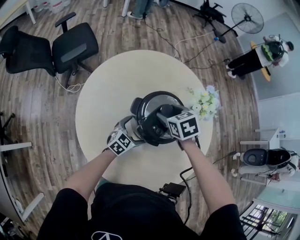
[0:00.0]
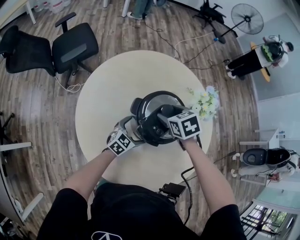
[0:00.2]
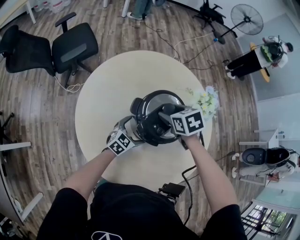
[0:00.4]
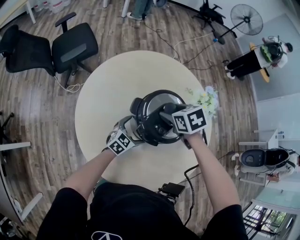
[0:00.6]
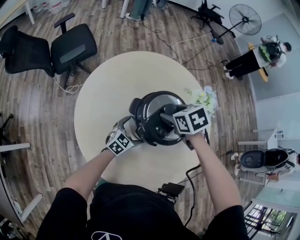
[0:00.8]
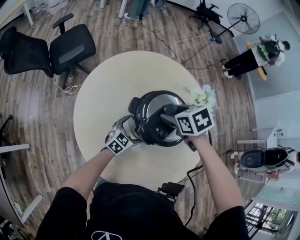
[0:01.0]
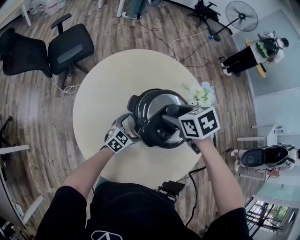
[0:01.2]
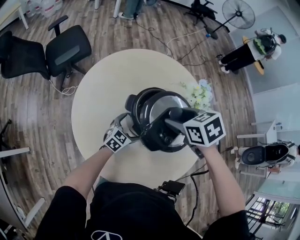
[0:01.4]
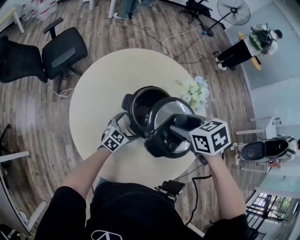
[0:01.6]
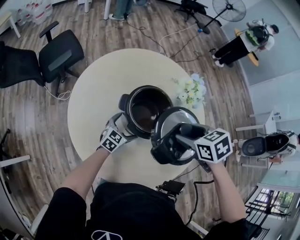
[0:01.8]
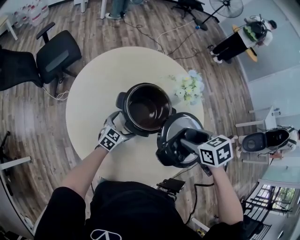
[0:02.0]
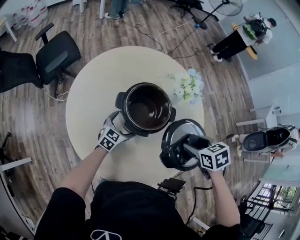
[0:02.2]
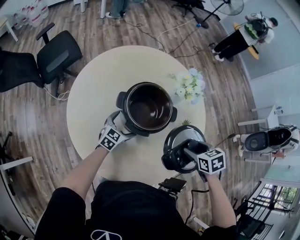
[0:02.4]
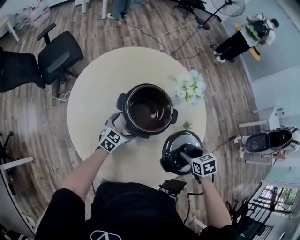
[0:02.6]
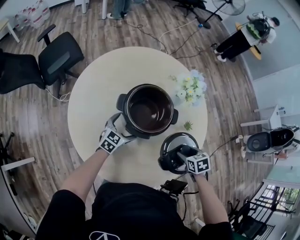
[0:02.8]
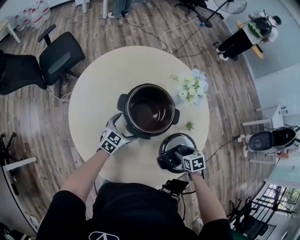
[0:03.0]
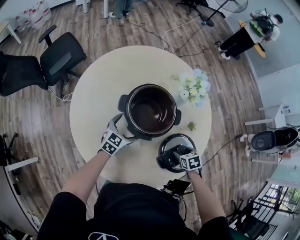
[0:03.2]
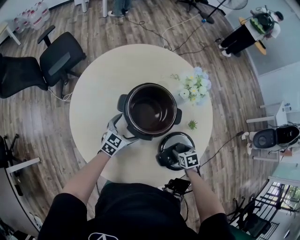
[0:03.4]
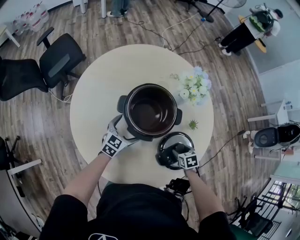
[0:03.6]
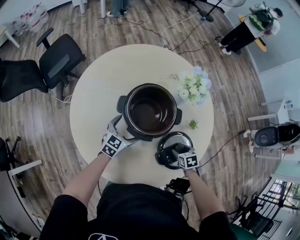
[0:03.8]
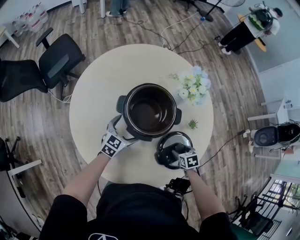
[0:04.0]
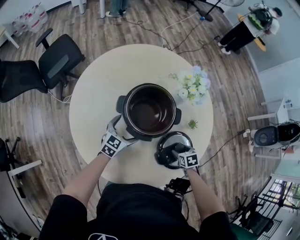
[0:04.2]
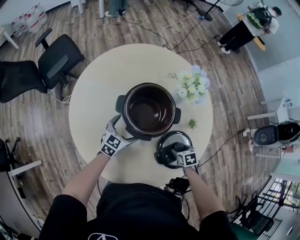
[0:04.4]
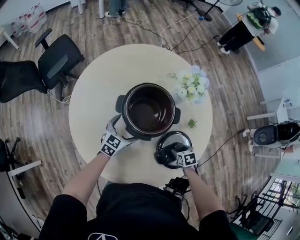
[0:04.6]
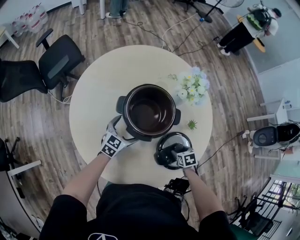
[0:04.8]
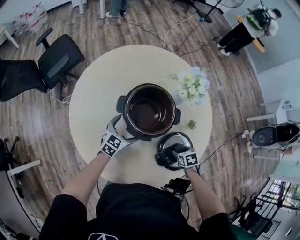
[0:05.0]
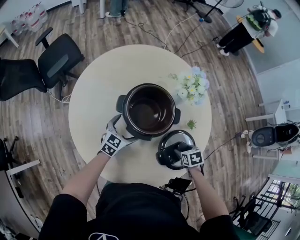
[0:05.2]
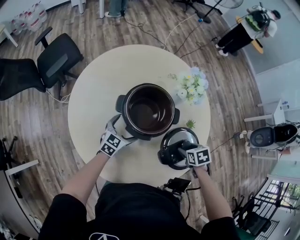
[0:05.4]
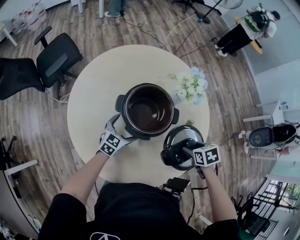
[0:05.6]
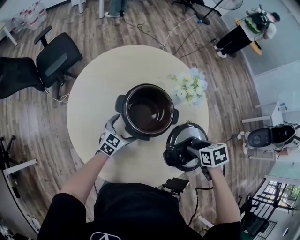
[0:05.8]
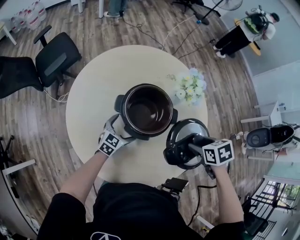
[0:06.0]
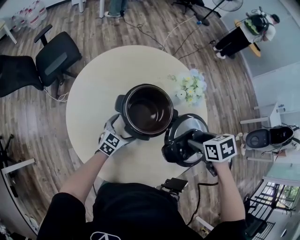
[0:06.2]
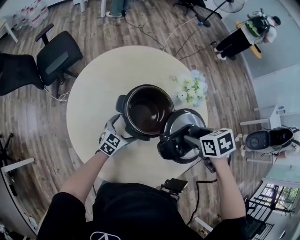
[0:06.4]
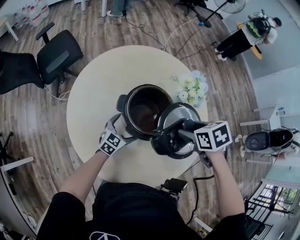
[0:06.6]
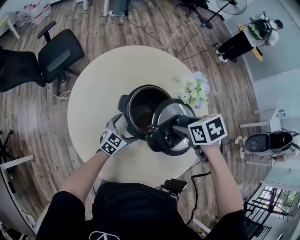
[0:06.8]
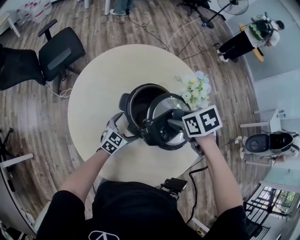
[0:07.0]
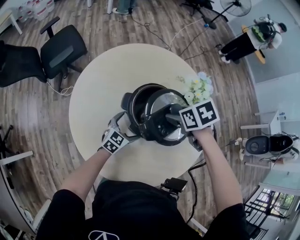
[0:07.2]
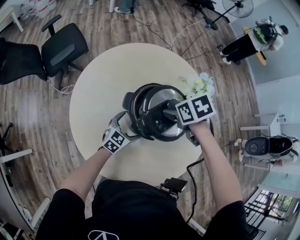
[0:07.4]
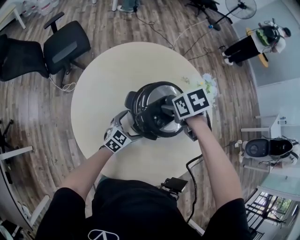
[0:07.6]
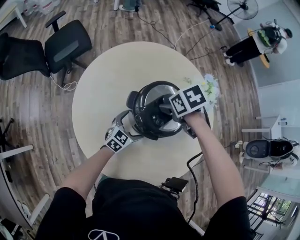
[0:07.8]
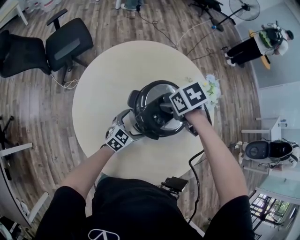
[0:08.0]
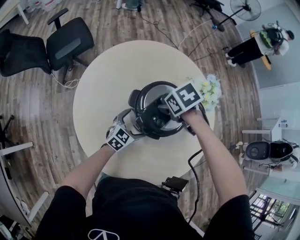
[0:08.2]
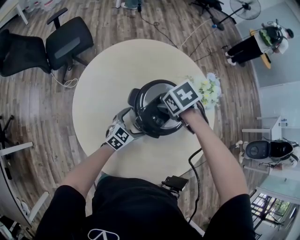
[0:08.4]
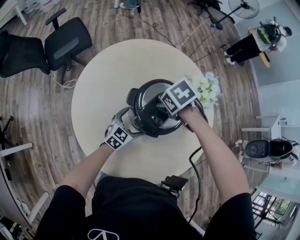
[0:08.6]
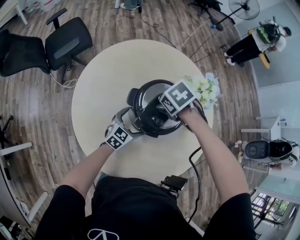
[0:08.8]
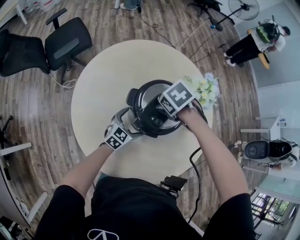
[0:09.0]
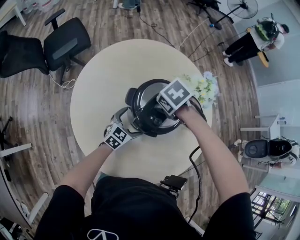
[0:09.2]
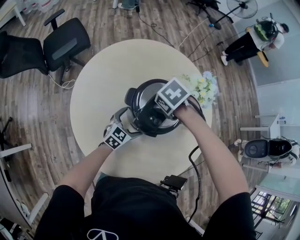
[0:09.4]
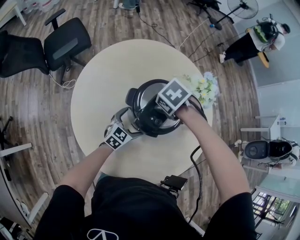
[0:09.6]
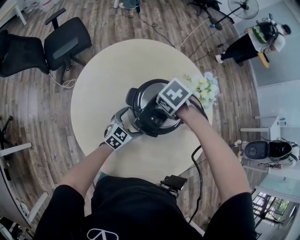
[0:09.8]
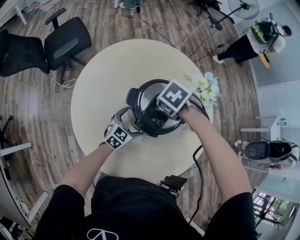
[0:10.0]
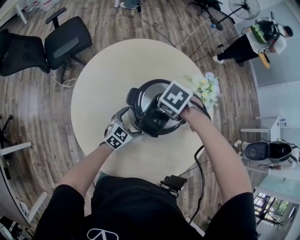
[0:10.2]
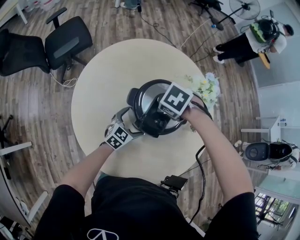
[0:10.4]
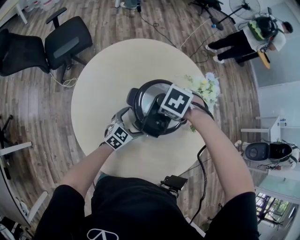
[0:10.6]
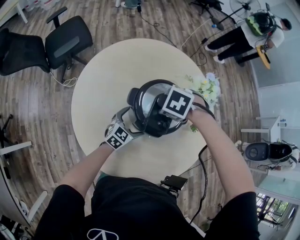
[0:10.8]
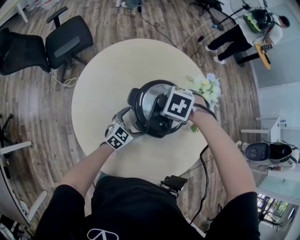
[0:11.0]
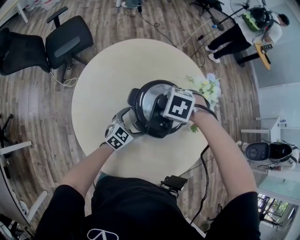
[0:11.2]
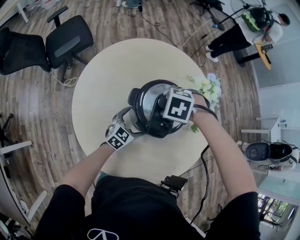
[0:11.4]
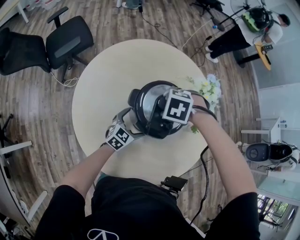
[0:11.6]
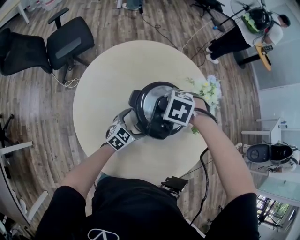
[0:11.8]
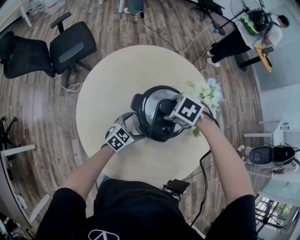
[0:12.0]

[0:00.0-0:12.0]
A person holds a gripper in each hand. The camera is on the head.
0:00.0 to 0:01.6: The right gripper travels upward, backward and to the right by approximately 15 cm.
0:01.6 to 0:03.0: The right gripper is displaced downward, to the right and backward by approximately 30 cm, and changes its angle by approximately 20 degrees.
0:03.0 to 0:04.4: The right gripper is displaced downward by some 5 cm.
0:04.4 to 0:06.0: The right gripper travels upward by roughly 25 cm.
0:06.0 to 0:07.6: The right gripper shifts by some 25 cm.
0:07.6 to 0:09.0: The right gripper rotates roughly 20 degrees.
0:09.0 to 0:10.4: There are only small adjustments of the grippers.

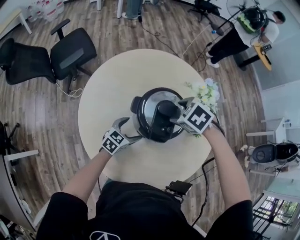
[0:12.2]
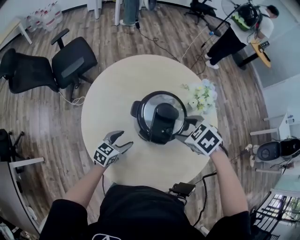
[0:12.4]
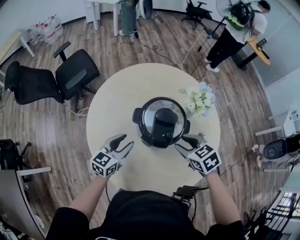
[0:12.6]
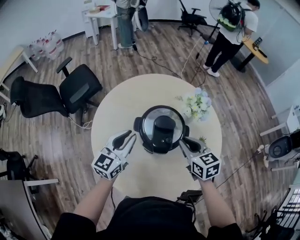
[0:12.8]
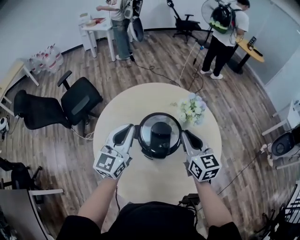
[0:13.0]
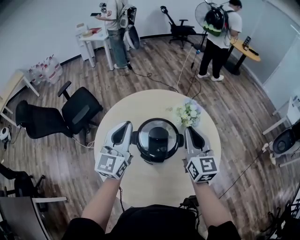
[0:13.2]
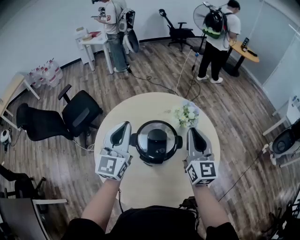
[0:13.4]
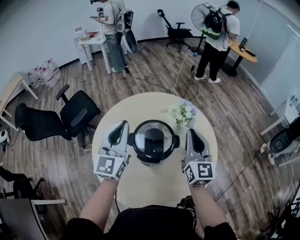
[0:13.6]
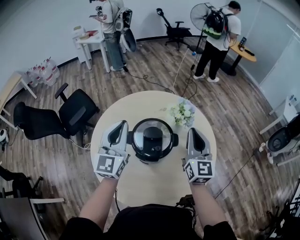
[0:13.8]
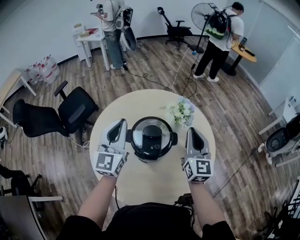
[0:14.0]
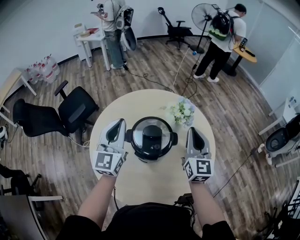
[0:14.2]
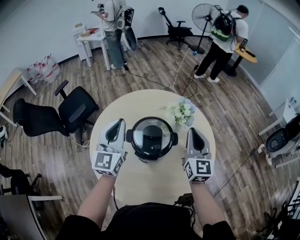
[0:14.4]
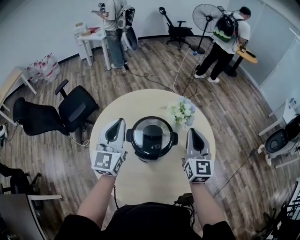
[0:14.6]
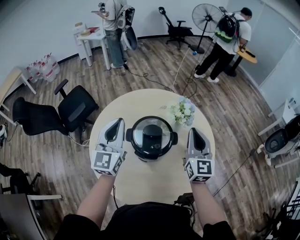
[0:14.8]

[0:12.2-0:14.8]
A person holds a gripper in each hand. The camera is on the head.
0:12.2 to 0:13.4: The left gripper travels upward by approximately 40 cm, angles its fingers upward, by about 40 degrees, and closes. The right gripper heads upward, covering approximately 20 cm, tips its fingers upward by some 80 degrees, and closes its fingers.
0:13.4 to 0:14.8: The grippers stay close to where they were, moving slightly.

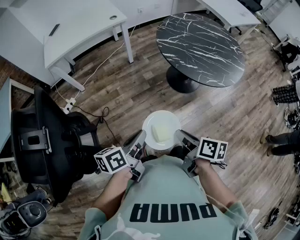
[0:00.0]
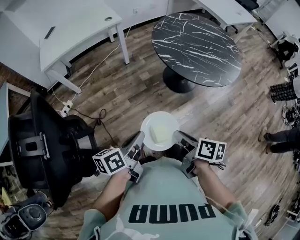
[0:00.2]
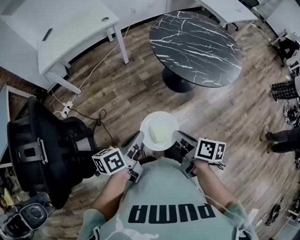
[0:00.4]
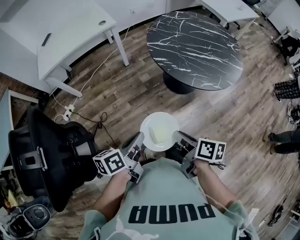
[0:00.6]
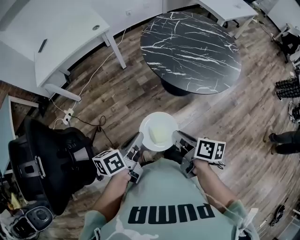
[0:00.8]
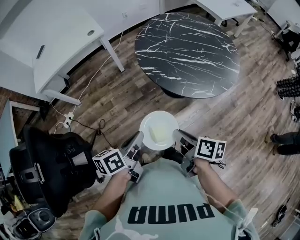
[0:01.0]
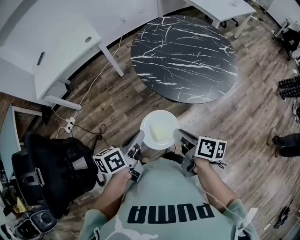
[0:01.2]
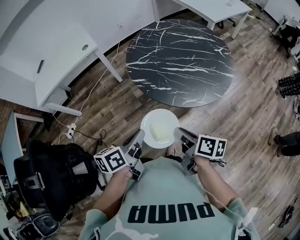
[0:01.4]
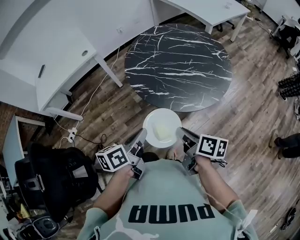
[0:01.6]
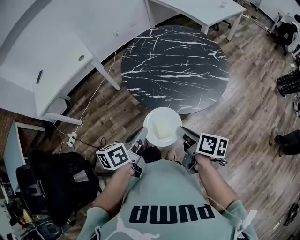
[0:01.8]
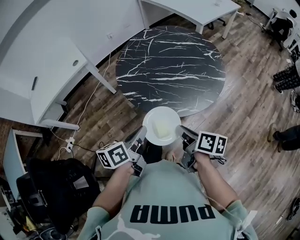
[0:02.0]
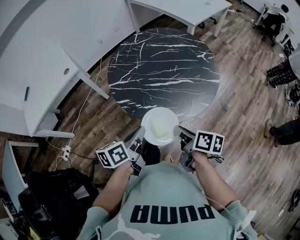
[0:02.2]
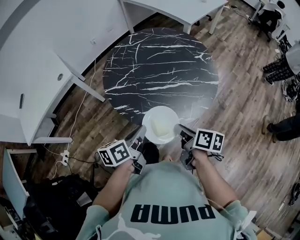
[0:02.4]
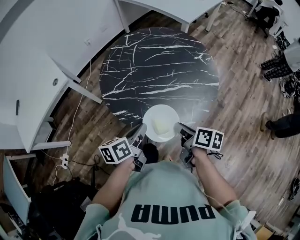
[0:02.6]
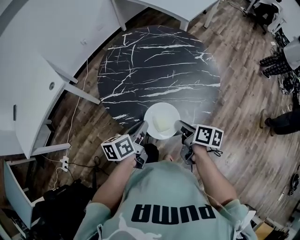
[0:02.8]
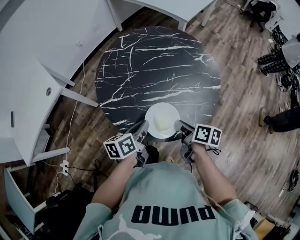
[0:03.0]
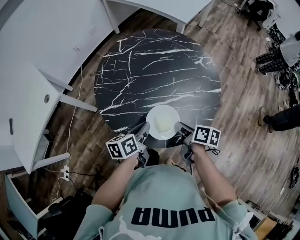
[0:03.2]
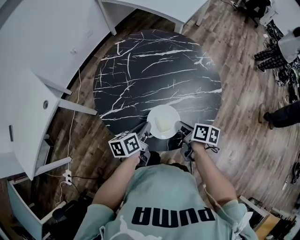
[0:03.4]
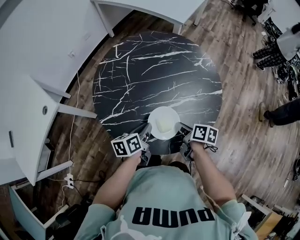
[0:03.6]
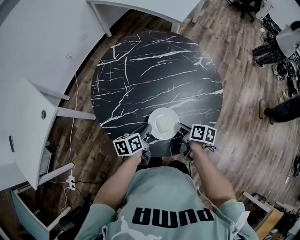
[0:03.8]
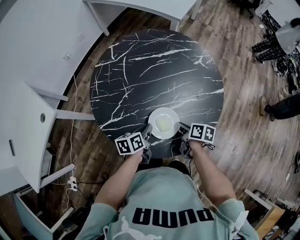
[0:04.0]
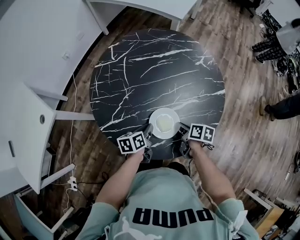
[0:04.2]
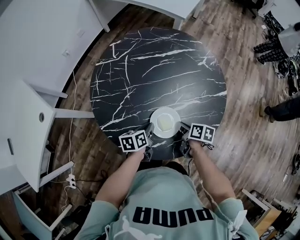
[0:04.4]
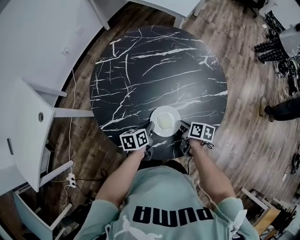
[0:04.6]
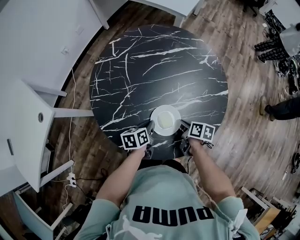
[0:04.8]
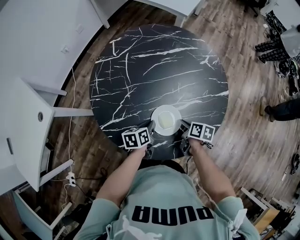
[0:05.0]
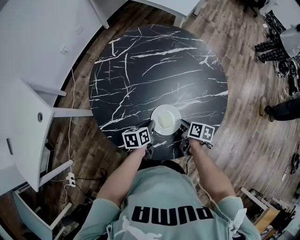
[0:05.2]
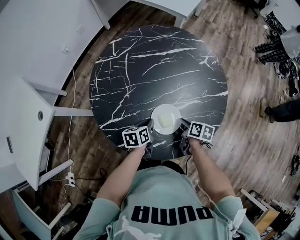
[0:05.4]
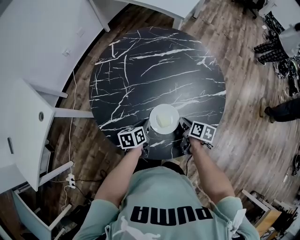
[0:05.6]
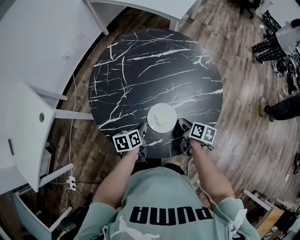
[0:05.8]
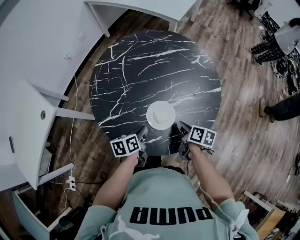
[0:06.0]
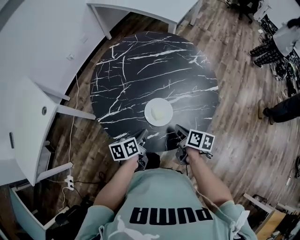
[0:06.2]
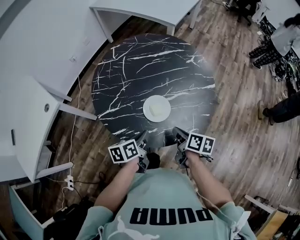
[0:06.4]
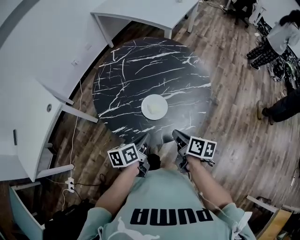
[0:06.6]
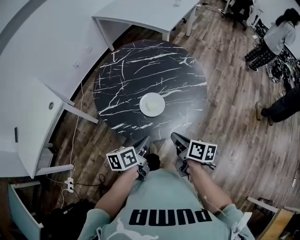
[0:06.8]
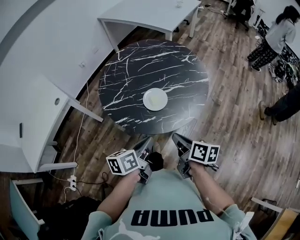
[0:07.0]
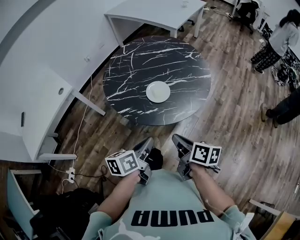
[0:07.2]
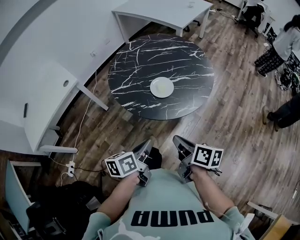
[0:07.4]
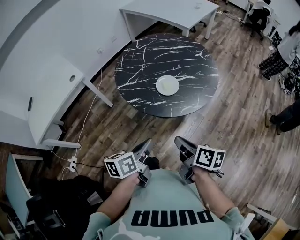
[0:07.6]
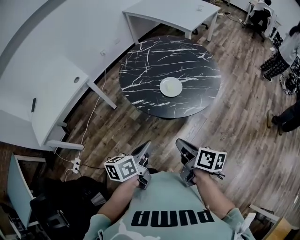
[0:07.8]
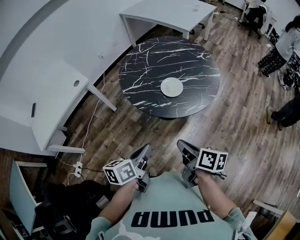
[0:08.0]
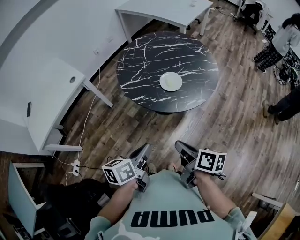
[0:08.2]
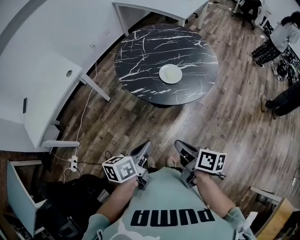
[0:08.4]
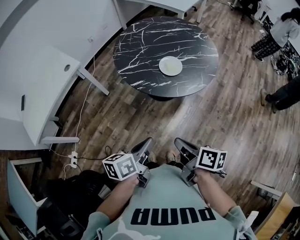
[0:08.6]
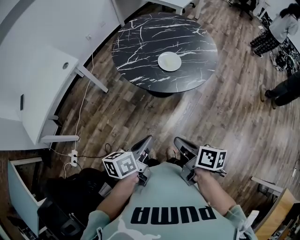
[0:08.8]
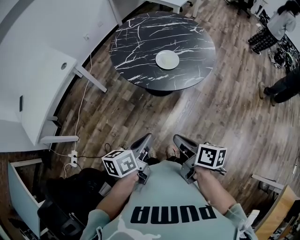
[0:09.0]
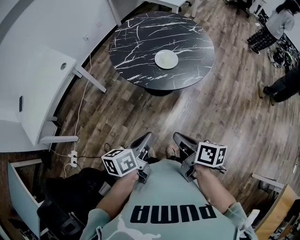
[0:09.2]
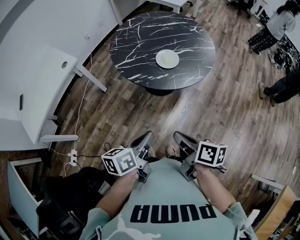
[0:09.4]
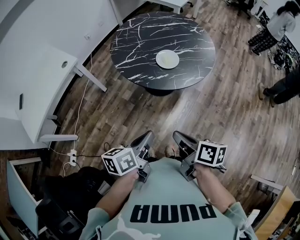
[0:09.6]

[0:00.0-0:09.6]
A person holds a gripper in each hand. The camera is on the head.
0:00.0 to 0:01.6: Both grippers travel together to the right and forward, approximately 30 cm.
0:01.6 to 0:03.2: The right gripper shifts about 25 cm forward and downward, and swivels approximately 20 degrees, while the left gripper moves forward, roughly 30 cm, and changes its angle by some 20 degrees.
0:03.2 to 0:04.8: The two grippers go approximately 15 cm downward and forward.
0:04.8 to 0:06.4: The grippers both shift upward and backward by about 15 cm.
0:06.4 to 0:08.0: The two grippers go roughly 30 cm backward and upward.
0:08.0 to 0:09.6: The right gripper moves backward and to the left, about 10 cm. The left gripper travels backward by roughly 5 cm.
